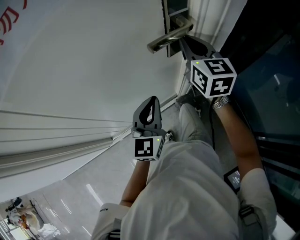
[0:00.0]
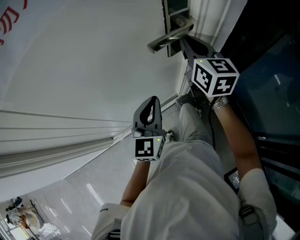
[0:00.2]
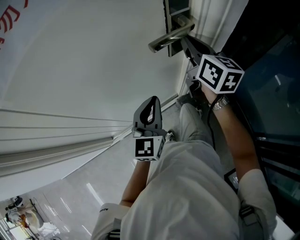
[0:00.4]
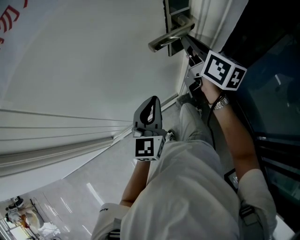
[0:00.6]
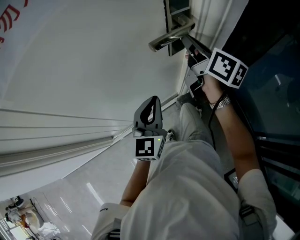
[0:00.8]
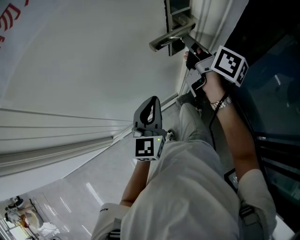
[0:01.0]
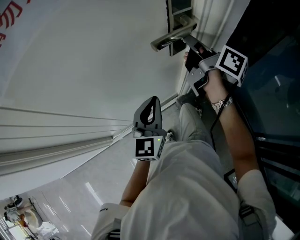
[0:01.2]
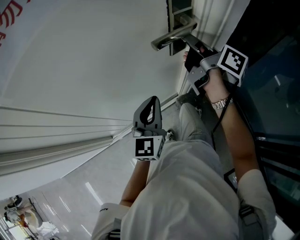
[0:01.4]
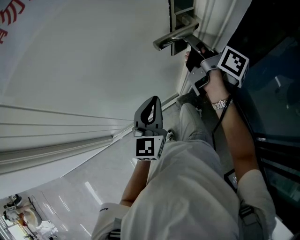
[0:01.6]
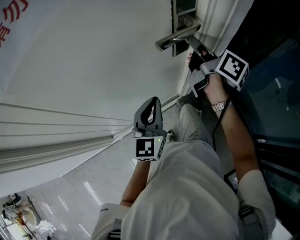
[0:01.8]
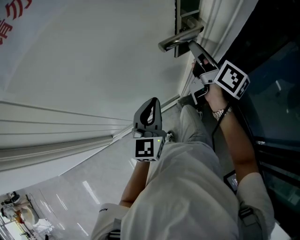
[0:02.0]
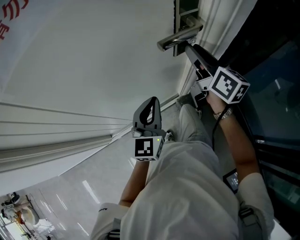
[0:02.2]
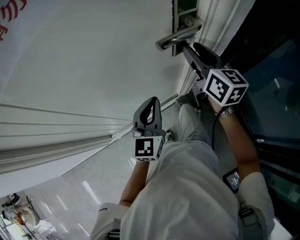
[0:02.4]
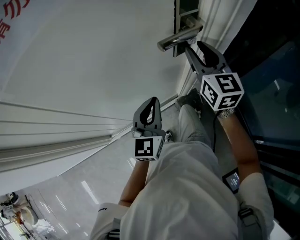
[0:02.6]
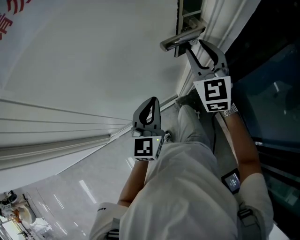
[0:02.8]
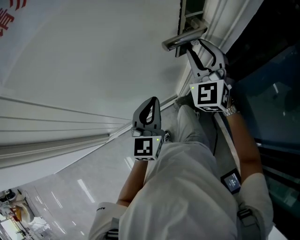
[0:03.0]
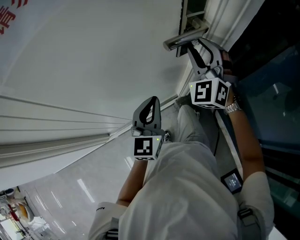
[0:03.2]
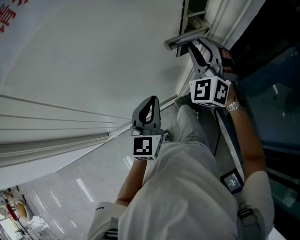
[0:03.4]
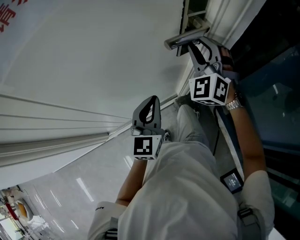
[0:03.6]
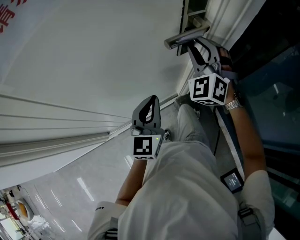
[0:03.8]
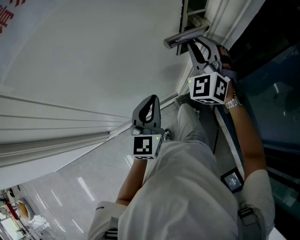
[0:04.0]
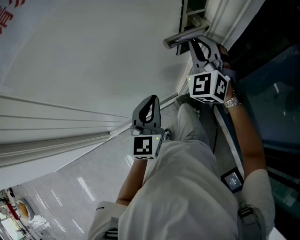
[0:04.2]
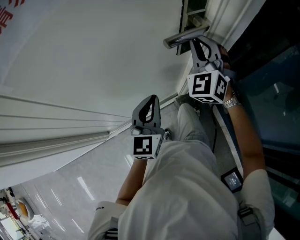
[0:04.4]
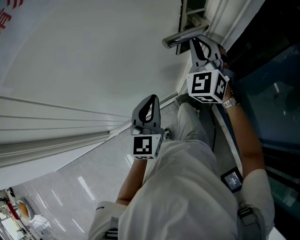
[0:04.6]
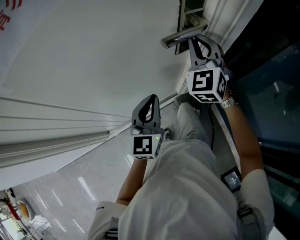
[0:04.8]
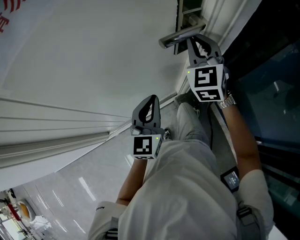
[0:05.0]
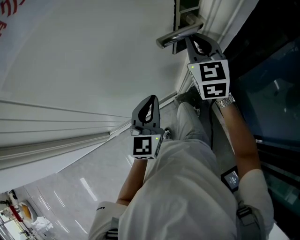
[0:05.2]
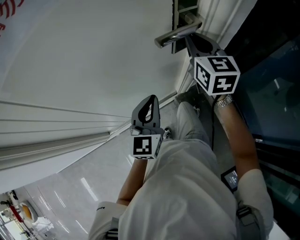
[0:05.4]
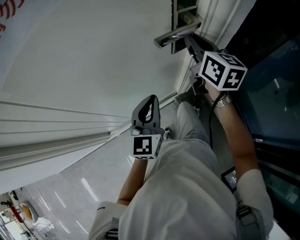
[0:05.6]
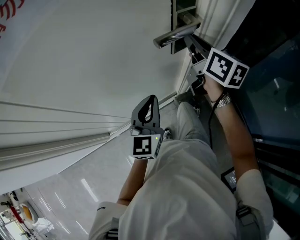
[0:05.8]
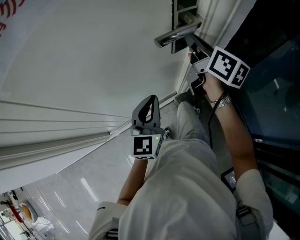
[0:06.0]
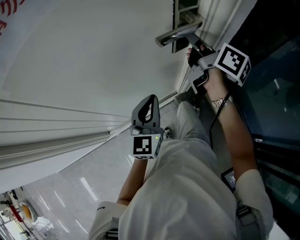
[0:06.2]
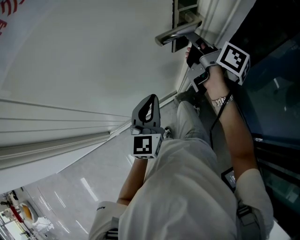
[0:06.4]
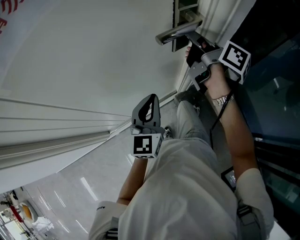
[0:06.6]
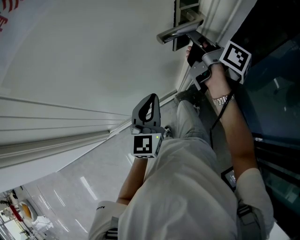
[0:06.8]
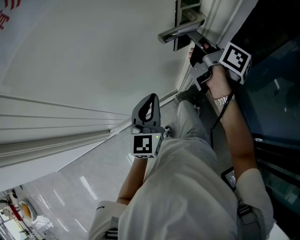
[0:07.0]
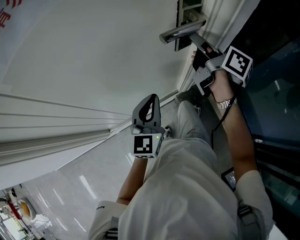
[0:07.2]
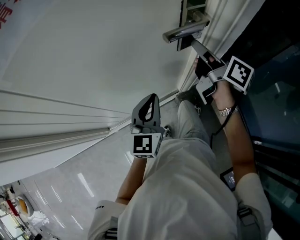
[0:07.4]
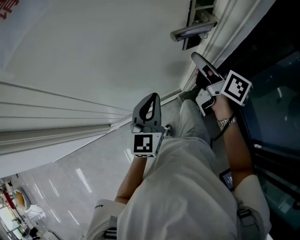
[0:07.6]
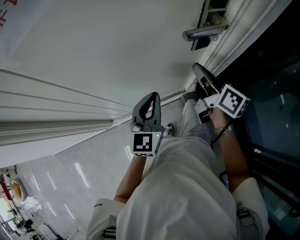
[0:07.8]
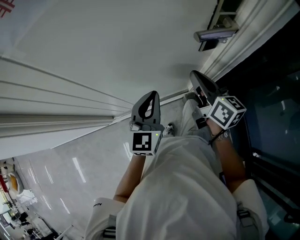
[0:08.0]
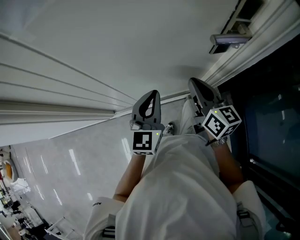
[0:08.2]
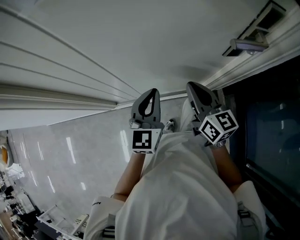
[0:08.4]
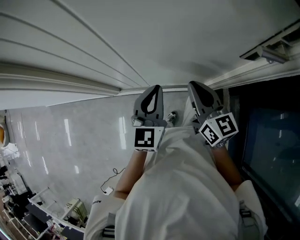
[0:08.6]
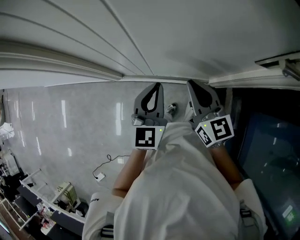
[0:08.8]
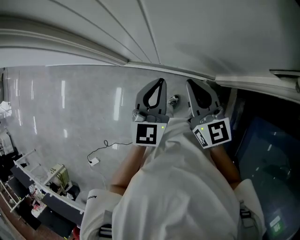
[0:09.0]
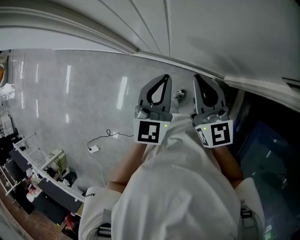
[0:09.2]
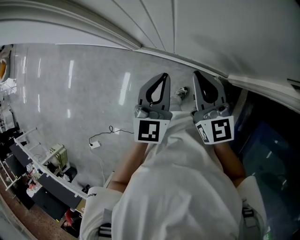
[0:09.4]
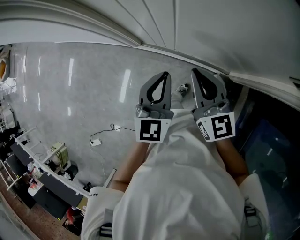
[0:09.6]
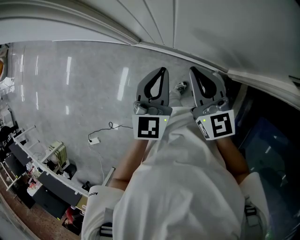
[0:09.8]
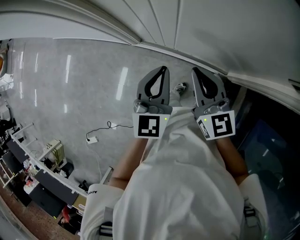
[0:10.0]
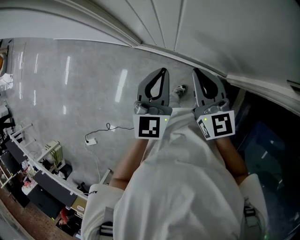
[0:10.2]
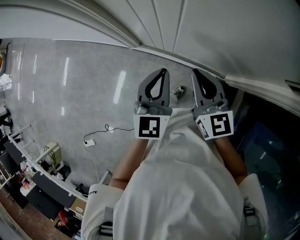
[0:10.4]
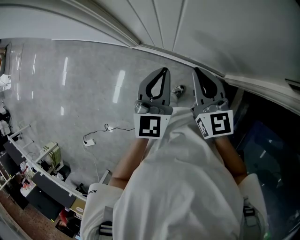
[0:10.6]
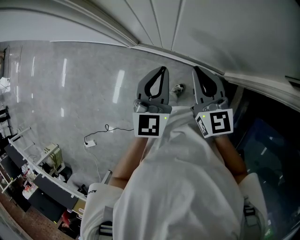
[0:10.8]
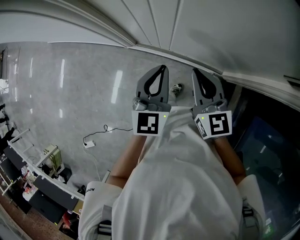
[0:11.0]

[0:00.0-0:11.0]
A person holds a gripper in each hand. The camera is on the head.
0:00.0 to 0:01.6: The right gripper rotates around the line of its fingers by roughly 60 degrees, clockwise from behind.
0:01.6 to 0:03.2: The right gripper rotates around the line of its fingers by approximately 120 degrees, counterclockwise from behind, and opens up.
0:03.2 to 0:04.8: The right gripper closes.
0:04.8 to 0:06.2: The right gripper rolls clockwise, seen from behind, by roughly 100 degrees.
0:06.2 to 0:07.8: The right gripper goes about 10 cm backward, downward and to the left, and opens, then closes again.
0:07.8 to 0:09.4: The left gripper shifts by about 25 cm, and swivels roughly 40 degrees, while the right gripper moves roughly 30 cm, and rotates some 50 degrees.
0:09.4 to 0:11.0: The grippers stay close to where they were, moving slightly.

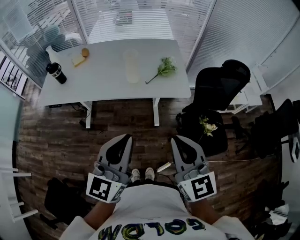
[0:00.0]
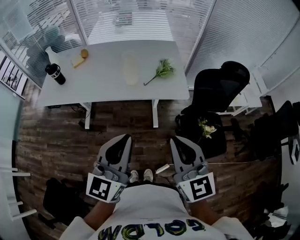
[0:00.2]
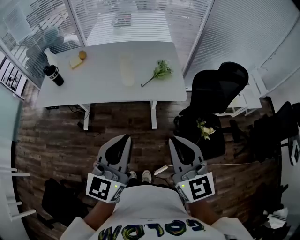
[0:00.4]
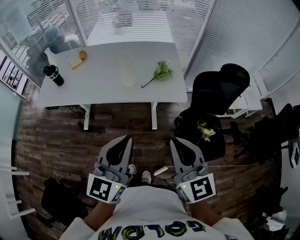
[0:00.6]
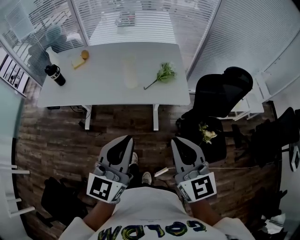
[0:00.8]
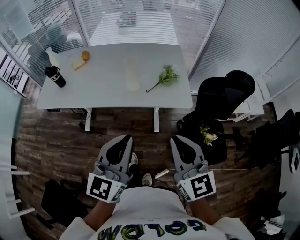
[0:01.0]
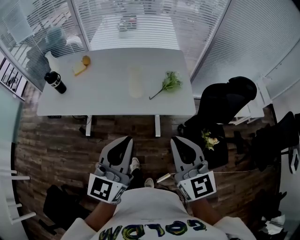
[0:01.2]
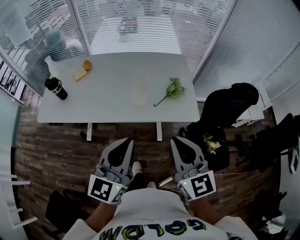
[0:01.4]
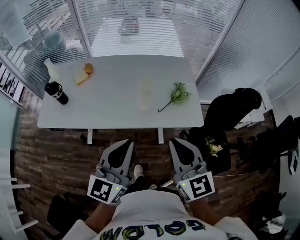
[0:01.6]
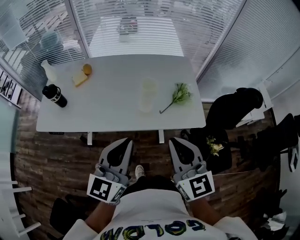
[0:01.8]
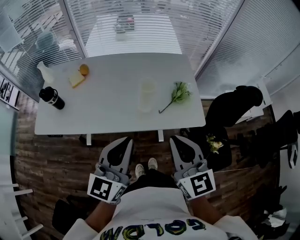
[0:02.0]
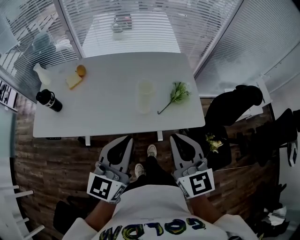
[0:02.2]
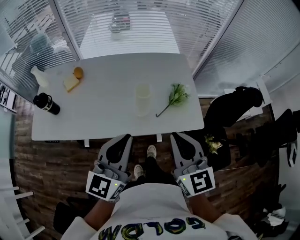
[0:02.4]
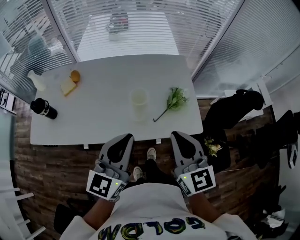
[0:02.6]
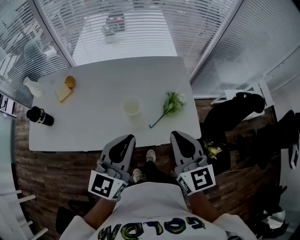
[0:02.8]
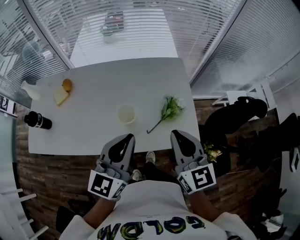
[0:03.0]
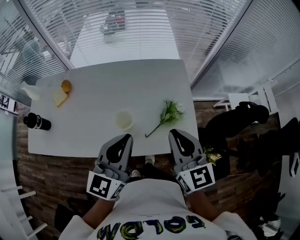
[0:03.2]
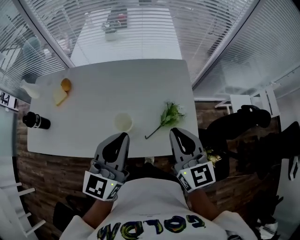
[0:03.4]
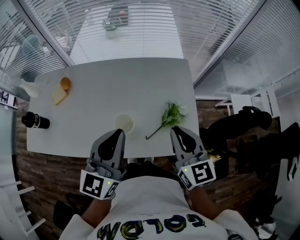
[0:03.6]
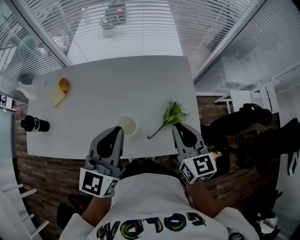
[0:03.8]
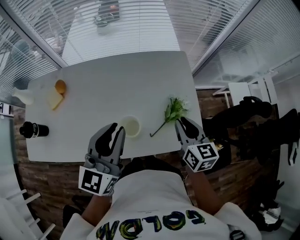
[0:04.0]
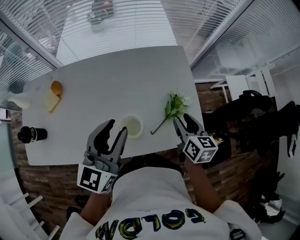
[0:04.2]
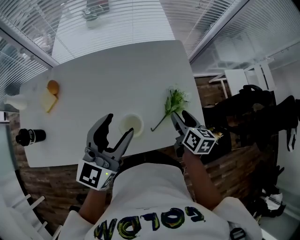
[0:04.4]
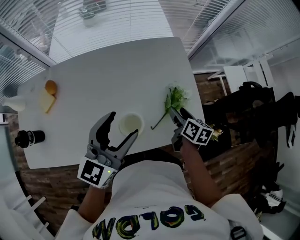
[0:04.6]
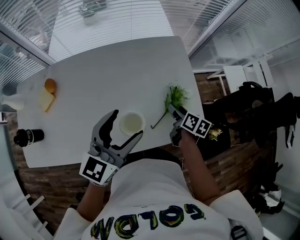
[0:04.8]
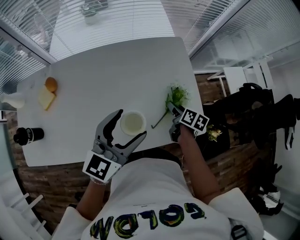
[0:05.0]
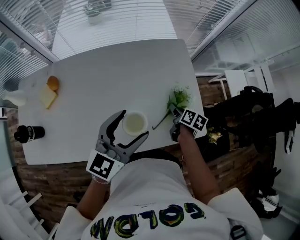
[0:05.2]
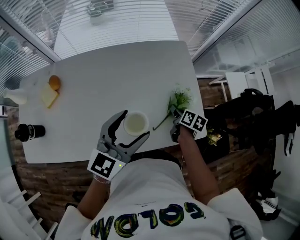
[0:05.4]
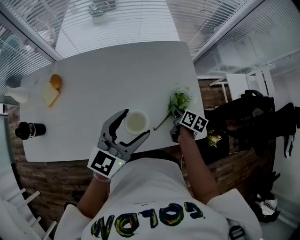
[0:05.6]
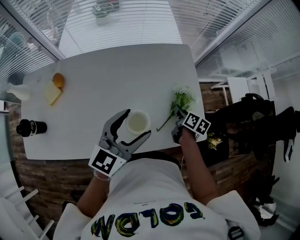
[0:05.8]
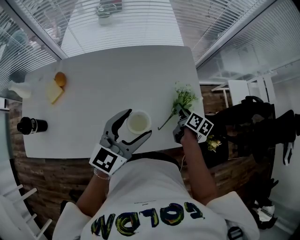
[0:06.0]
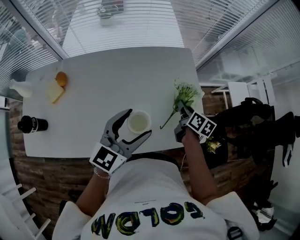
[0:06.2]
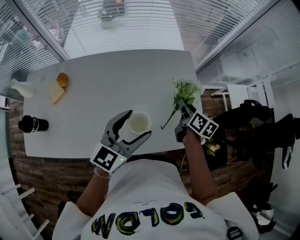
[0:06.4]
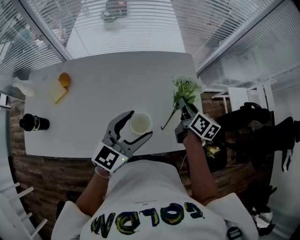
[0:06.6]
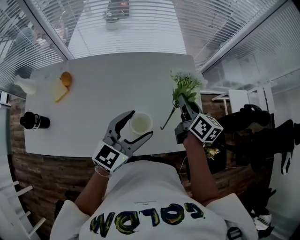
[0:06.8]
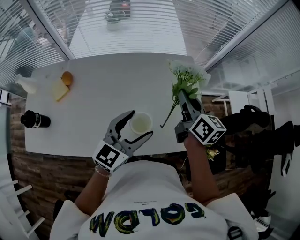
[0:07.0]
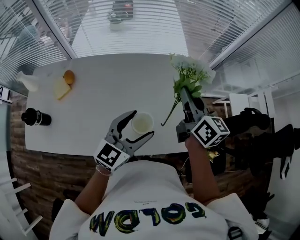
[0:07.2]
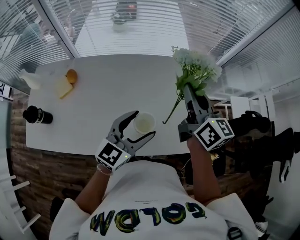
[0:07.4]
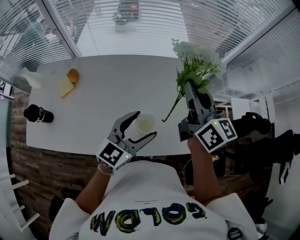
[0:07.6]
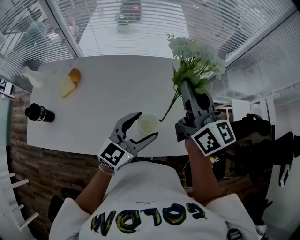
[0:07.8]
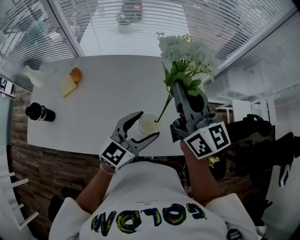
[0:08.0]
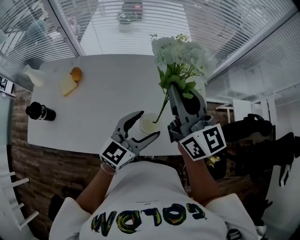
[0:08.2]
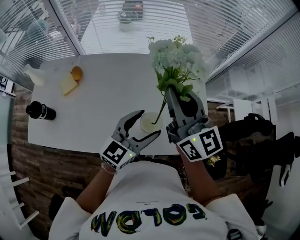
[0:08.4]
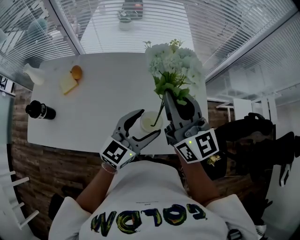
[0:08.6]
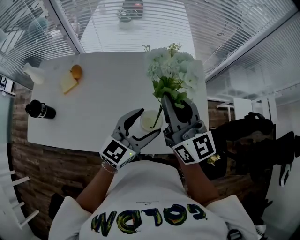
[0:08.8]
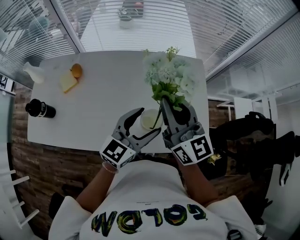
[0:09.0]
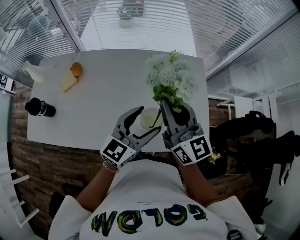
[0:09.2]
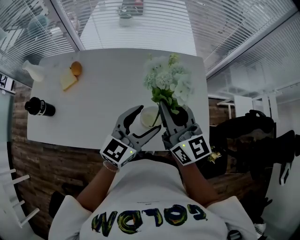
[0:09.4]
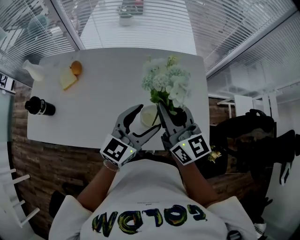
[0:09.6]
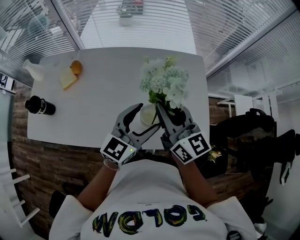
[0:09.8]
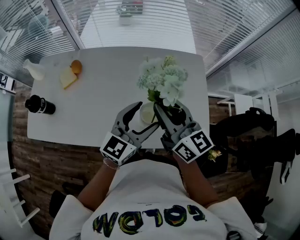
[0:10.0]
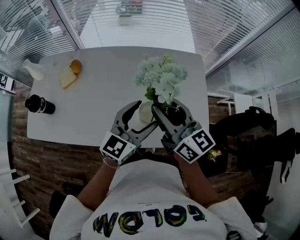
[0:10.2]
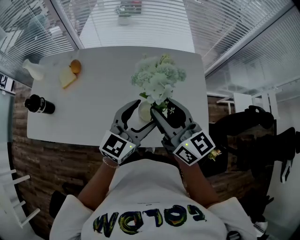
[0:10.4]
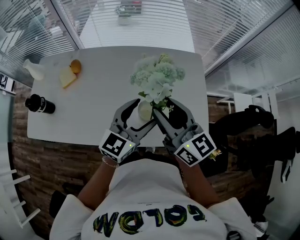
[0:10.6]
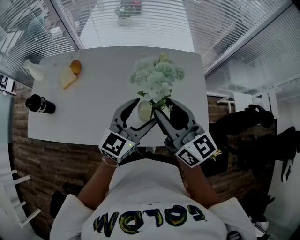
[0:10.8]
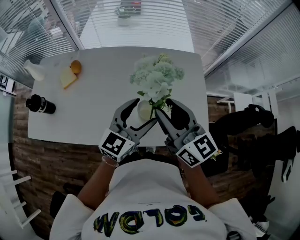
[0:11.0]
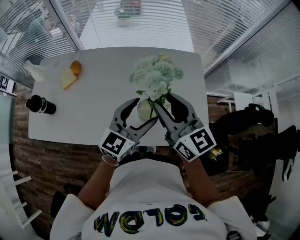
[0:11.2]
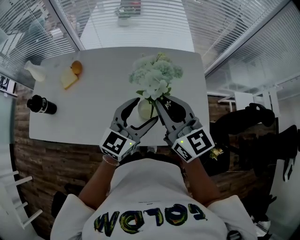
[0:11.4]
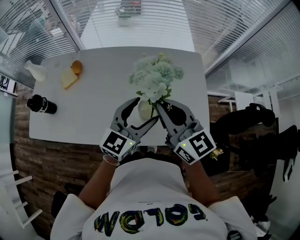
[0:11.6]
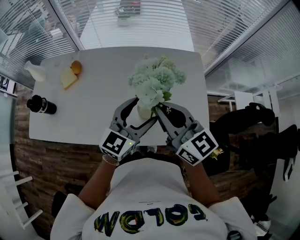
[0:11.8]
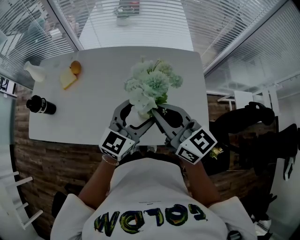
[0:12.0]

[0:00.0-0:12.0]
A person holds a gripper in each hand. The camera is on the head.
0:00.0 to 0:01.6: The grippers both shift forward and to the left by approximately 20 cm.
0:01.6 to 0:03.0: Both grippers move forward, some 20 cm.
0:03.0 to 0:04.4: The right gripper moves downward and forward, approximately 20 cm, rotates approximately 40 degrees, and opens; the left gripper moves forward and to the left, some 10 cm, and opens up.
0:04.4 to 0:06.0: The right gripper is displaced downward and forward by about 10 cm, and closes; the left gripper changes place by approximately 5 cm.
0:06.0 to 0:07.6: The right gripper travels upward by roughly 30 cm, and tips its fingers upward by approximately 40 degrees.
0:07.6 to 0:09.0: The right gripper goes approximately 10 cm backward and to the left.
0:09.0 to 0:10.4: The right gripper changes place by some 5 cm, and opens up.
0:10.4 to 0:12.0: The right gripper closes.

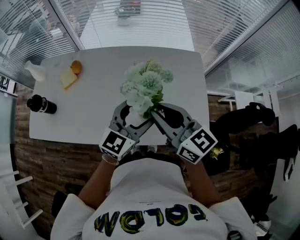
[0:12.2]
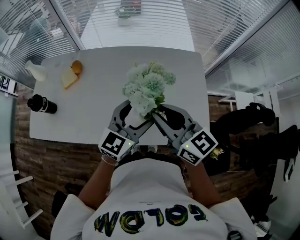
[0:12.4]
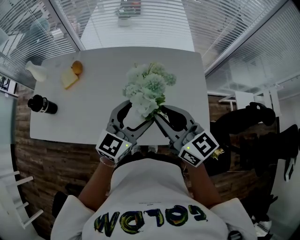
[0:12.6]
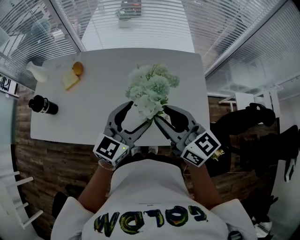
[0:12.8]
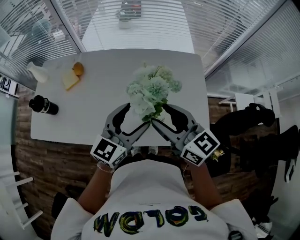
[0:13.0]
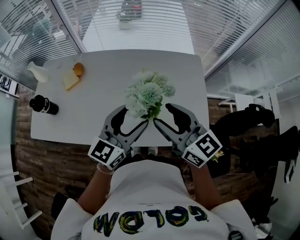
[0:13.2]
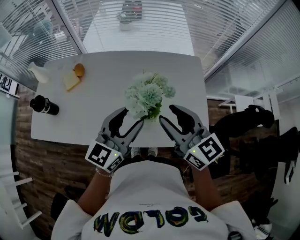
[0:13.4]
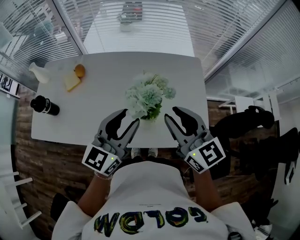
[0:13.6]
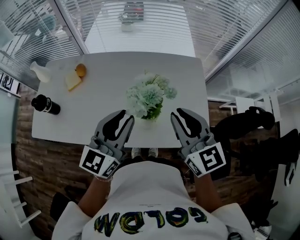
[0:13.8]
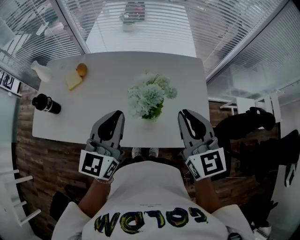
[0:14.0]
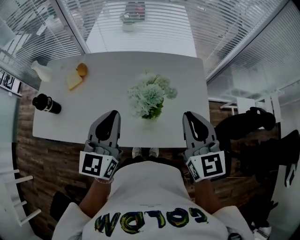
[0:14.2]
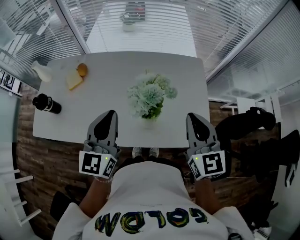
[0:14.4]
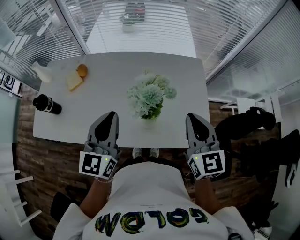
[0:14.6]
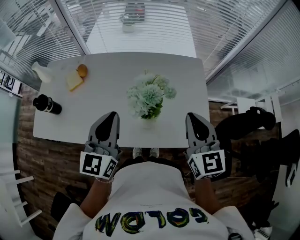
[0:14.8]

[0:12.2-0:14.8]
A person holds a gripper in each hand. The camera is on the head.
0:12.2 to 0:13.4: The left gripper ends up approximately 5 cm from where it was.
0:13.4 to 0:14.8: The left gripper heads to the left, covering some 5 cm, and closes its fingers. The right gripper heads to the right, covering about 5 cm, rotates about 30 degrees, and closes up.
